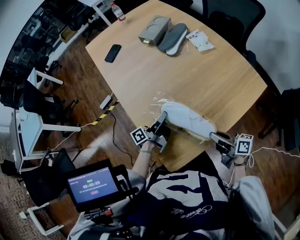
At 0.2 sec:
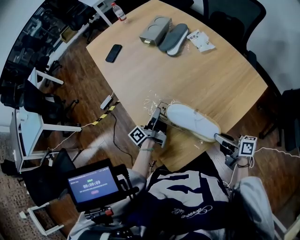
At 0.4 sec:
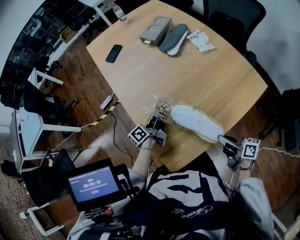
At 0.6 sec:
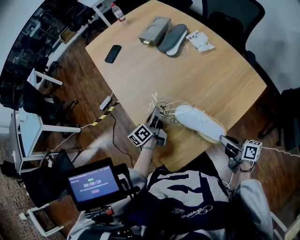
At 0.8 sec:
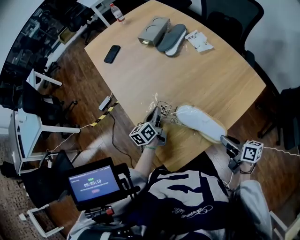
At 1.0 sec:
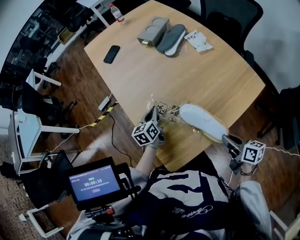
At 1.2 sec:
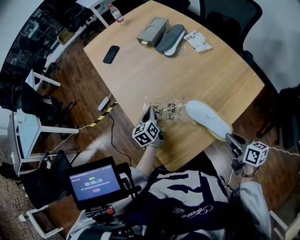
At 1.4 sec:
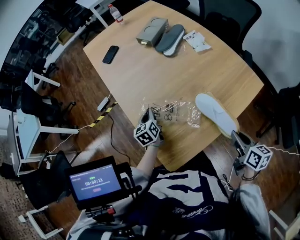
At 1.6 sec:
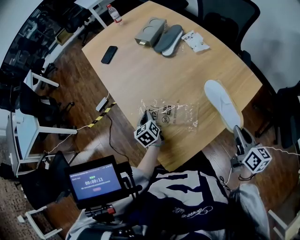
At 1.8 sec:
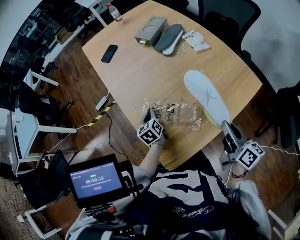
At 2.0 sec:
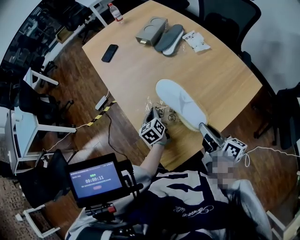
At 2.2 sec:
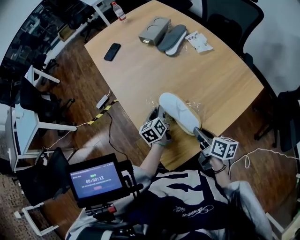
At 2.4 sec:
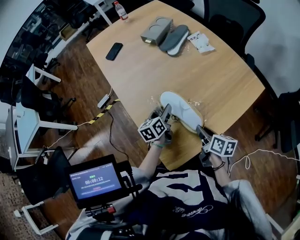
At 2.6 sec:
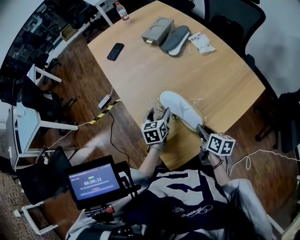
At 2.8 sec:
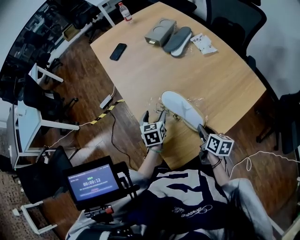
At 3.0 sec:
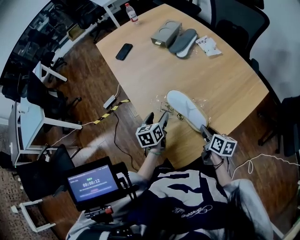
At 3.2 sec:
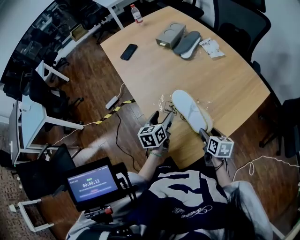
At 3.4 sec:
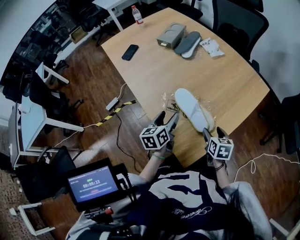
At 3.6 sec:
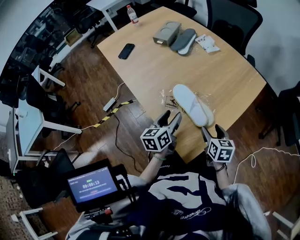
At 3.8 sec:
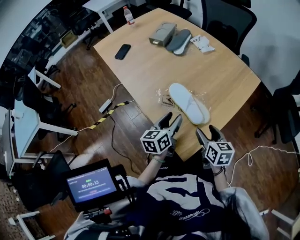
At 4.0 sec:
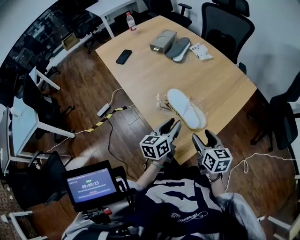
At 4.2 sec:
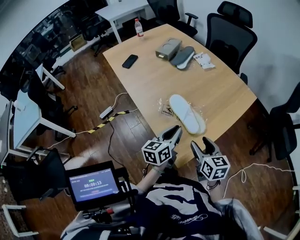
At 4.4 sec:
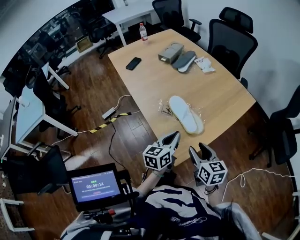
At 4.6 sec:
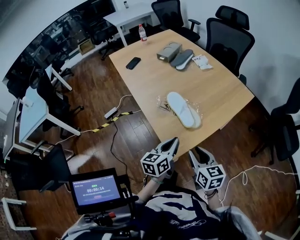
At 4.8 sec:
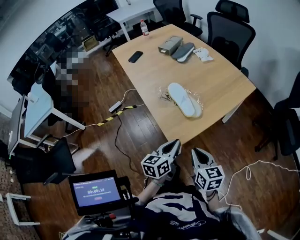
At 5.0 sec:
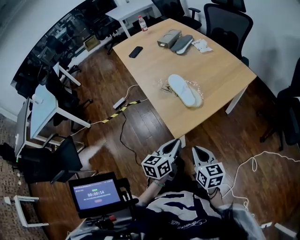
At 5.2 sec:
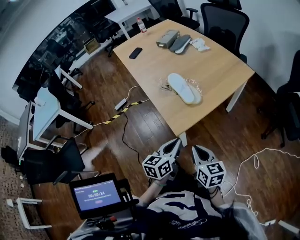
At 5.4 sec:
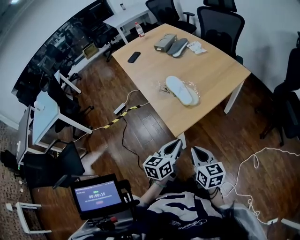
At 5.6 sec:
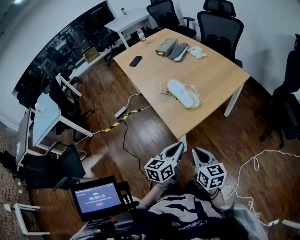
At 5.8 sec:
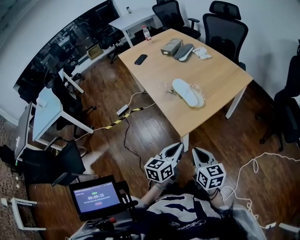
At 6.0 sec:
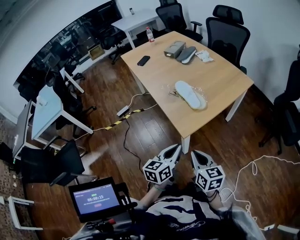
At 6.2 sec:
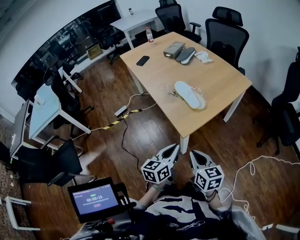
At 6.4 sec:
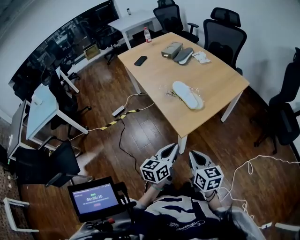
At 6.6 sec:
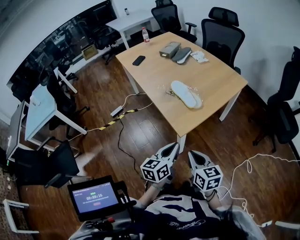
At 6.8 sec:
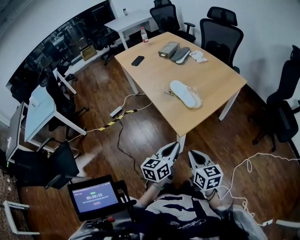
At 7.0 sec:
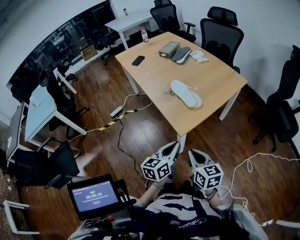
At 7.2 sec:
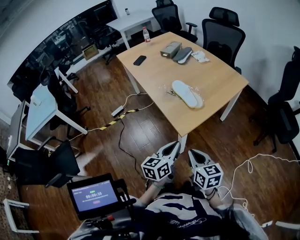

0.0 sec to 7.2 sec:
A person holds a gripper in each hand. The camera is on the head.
0.0 sec to 1.4 sec: The left gripper goes approximately 5 cm to the left, and tilts its fingers some 40 degrees downward. The right gripper heads to the right and upward, covering roughly 10 cm, and rotates roughly 40 degrees.
1.4 sec to 2.8 sec: The right gripper goes roughly 20 cm to the left, downward and forward, while the left gripper reaches about 5 cm to the right, then returns, and opens its fingers.
2.8 sec to 4.4 sec: The left gripper shifts roughly 25 cm backward, upward and to the right, turns by approximately 40 degrees, and closes up. Meanwhile the right gripper travels backward and upward by some 20 cm, turns by some 30 degrees, and opens.
4.4 sec to 5.8 sec: The grippers both shift backward by some 20 cm. The right gripper closes.
5.8 sec to 7.2 sec: The right gripper changes place by approximately 5 cm. Meanwhile the left gripper moves some 5 cm.

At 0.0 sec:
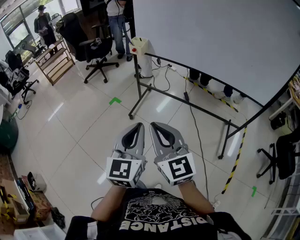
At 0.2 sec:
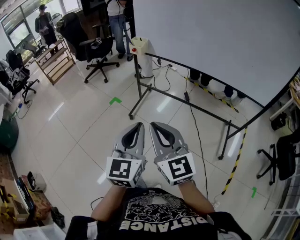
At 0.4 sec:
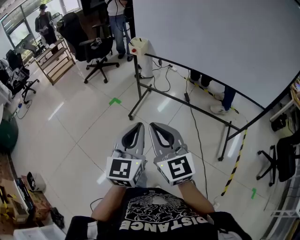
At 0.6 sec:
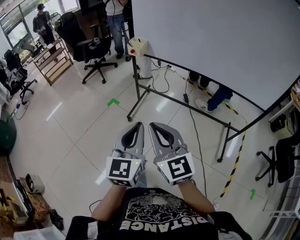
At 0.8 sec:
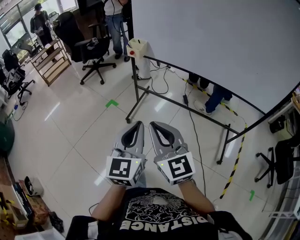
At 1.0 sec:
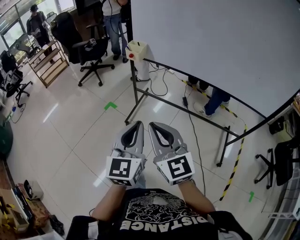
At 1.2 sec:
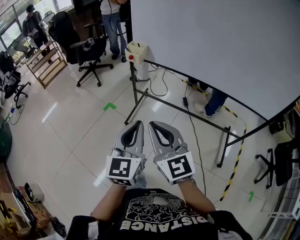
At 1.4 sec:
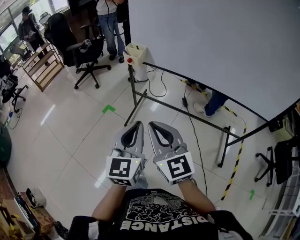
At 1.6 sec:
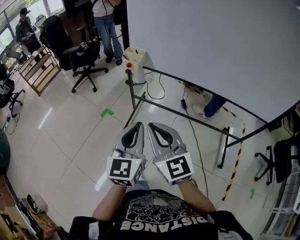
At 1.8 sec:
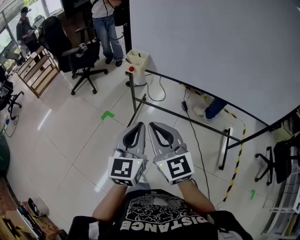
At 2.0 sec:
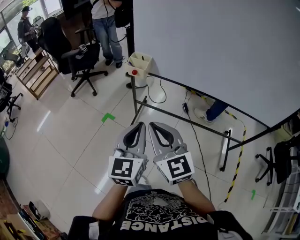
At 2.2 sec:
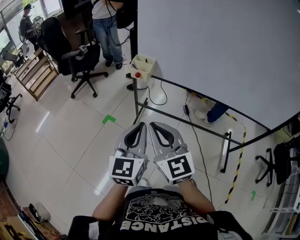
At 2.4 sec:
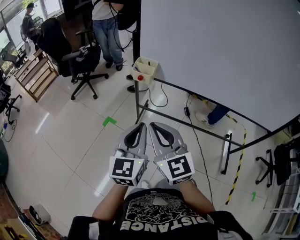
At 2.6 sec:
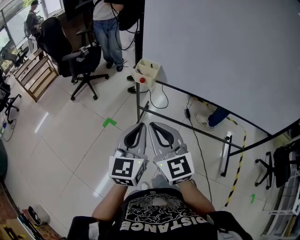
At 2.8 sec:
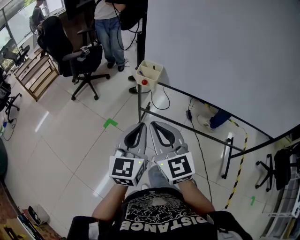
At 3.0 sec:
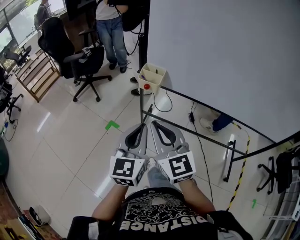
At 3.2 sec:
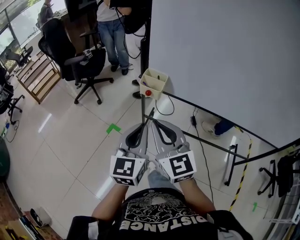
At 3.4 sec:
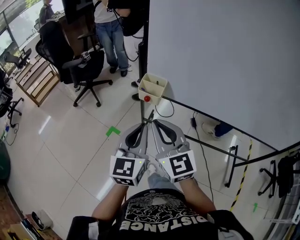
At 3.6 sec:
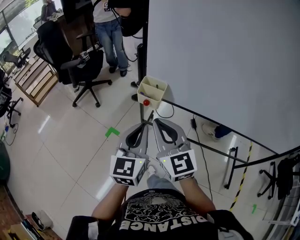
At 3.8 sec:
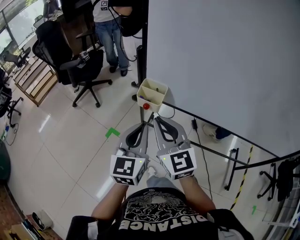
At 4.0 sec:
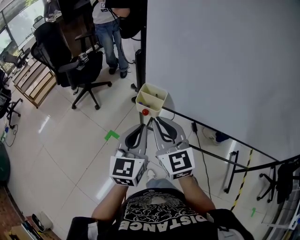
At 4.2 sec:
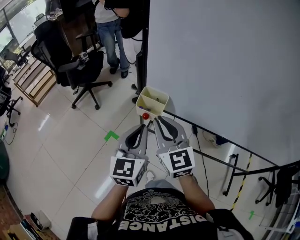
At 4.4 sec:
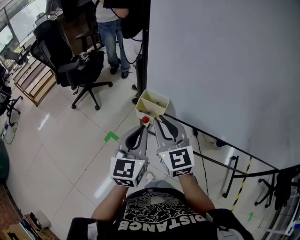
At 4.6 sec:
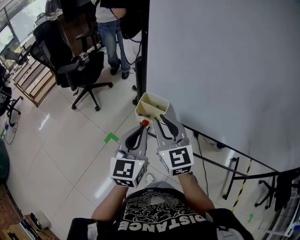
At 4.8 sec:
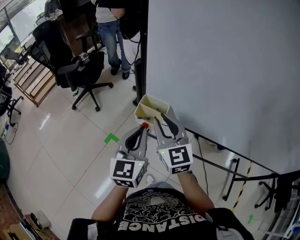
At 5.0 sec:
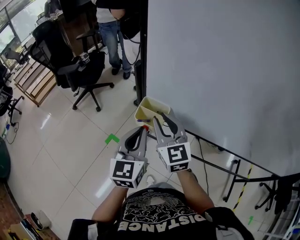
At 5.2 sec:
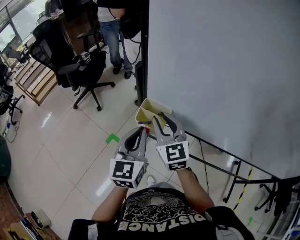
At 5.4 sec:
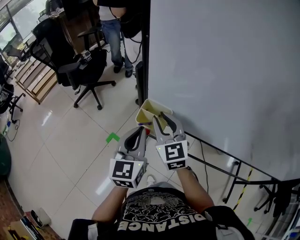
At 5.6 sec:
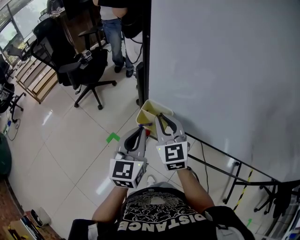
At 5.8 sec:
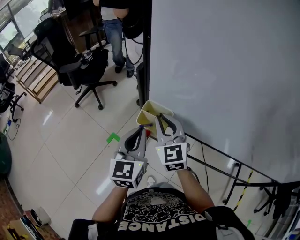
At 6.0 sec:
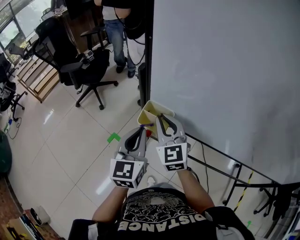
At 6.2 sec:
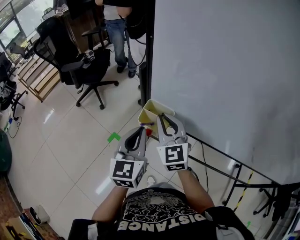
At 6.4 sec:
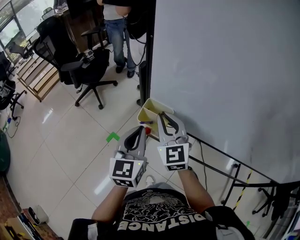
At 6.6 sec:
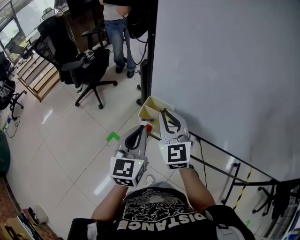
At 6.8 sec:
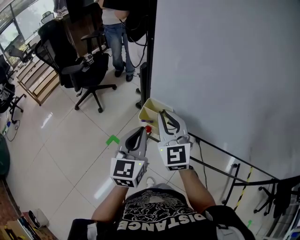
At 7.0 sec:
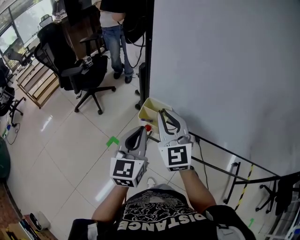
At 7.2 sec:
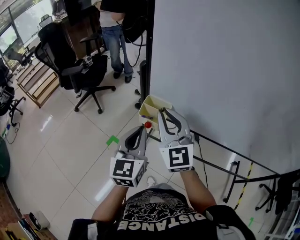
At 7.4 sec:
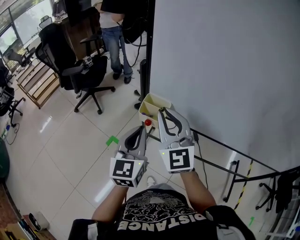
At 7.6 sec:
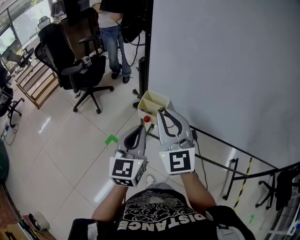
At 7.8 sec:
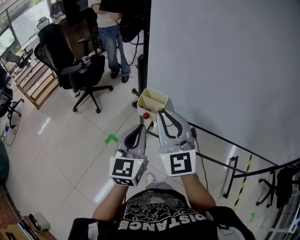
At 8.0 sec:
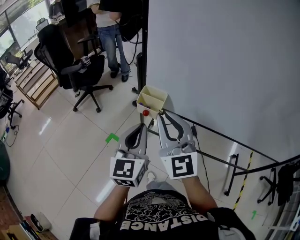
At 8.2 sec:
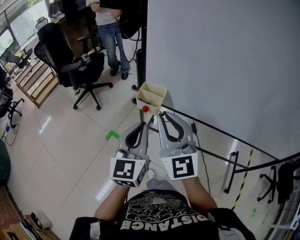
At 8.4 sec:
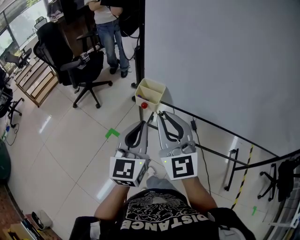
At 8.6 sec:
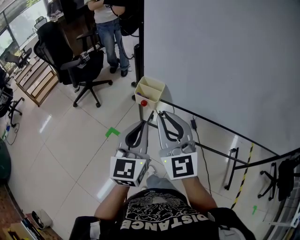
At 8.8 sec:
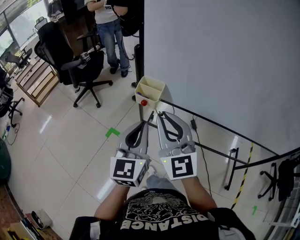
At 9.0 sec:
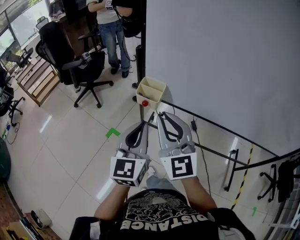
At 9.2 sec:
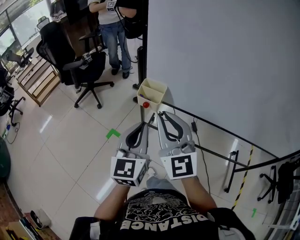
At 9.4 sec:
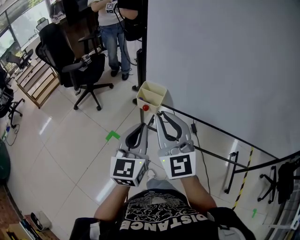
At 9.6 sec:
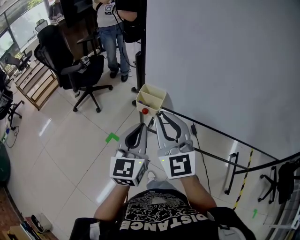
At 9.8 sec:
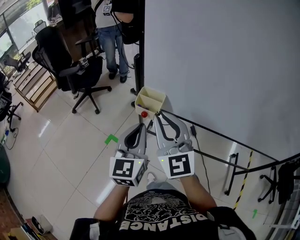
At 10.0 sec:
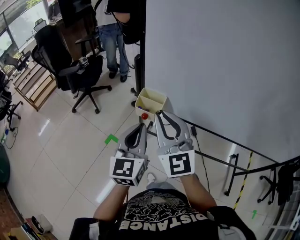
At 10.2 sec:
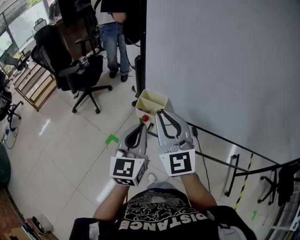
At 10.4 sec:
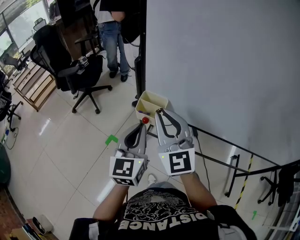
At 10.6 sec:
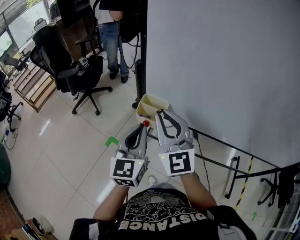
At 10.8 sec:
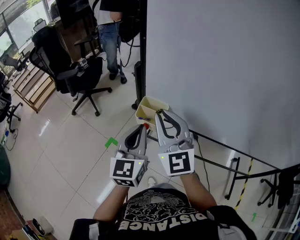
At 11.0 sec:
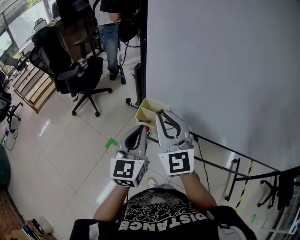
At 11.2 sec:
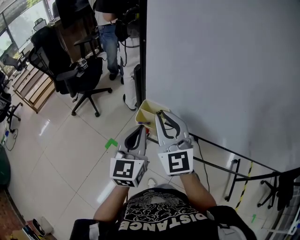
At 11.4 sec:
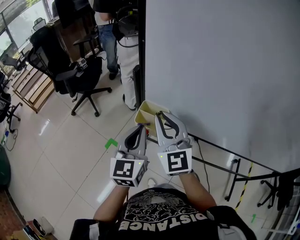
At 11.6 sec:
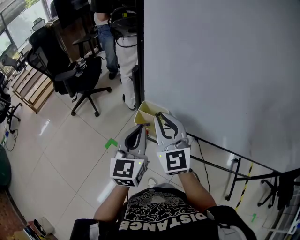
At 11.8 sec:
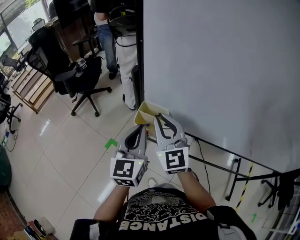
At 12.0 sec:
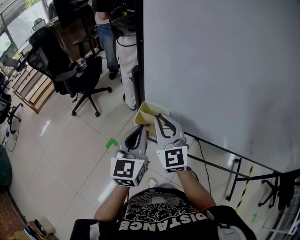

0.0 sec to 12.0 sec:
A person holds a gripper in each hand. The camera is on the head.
0.0 sec to 1.6 sec: The grippers both shift forward by approximately 25 cm.
1.6 sec to 3.0 sec: The grippers both shift forward and to the left by some 20 cm.
3.0 sec to 4.4 sec: Both grippers travel together forward, roughly 20 cm.
4.4 sec to 6.0 sec: The left gripper shifts some 5 cm forward, while the right gripper goes about 10 cm forward.
6.0 sec to 7.6 sec: The right gripper is displaced upward and backward by some 15 cm. Meanwhile the left gripper is displaced backward by approximately 10 cm.
7.6 sec to 9.0 sec: The grippers both shift backward by some 10 cm.
9.0 sec to 10.4 sec: The two grippers go roughly 10 cm forward.
10.4 sec to 12.0 sec: The right gripper travels forward and downward by about 10 cm. Meanwhile the left gripper travels forward by roughly 5 cm.

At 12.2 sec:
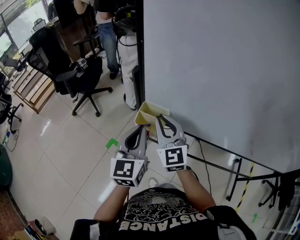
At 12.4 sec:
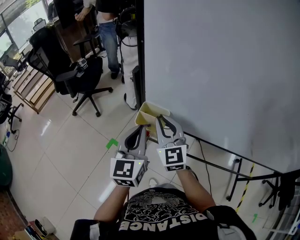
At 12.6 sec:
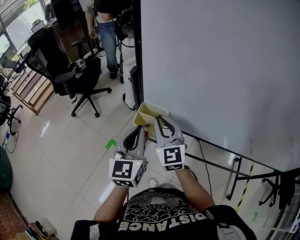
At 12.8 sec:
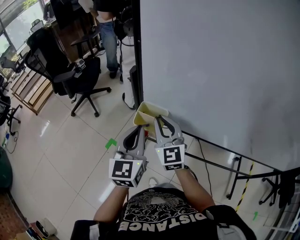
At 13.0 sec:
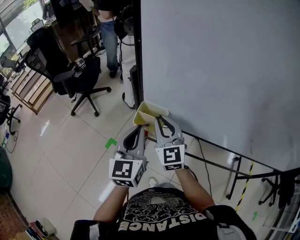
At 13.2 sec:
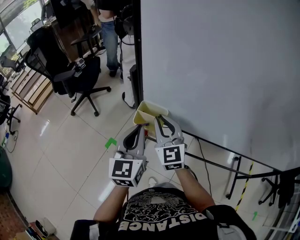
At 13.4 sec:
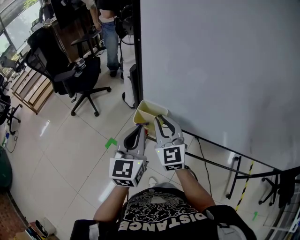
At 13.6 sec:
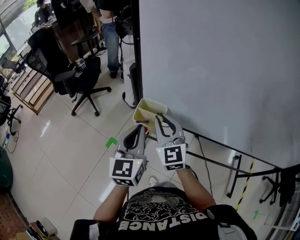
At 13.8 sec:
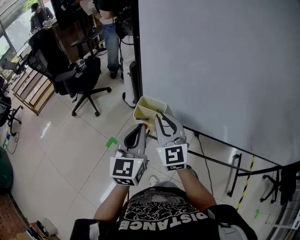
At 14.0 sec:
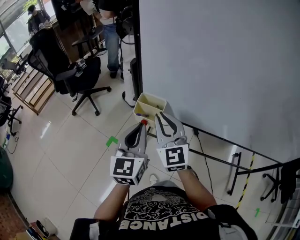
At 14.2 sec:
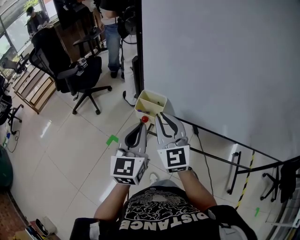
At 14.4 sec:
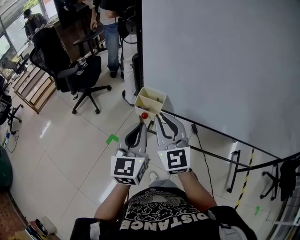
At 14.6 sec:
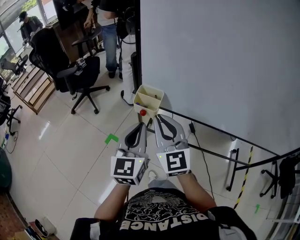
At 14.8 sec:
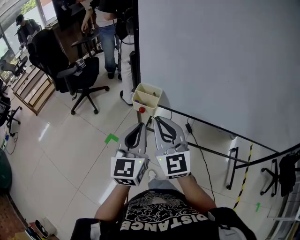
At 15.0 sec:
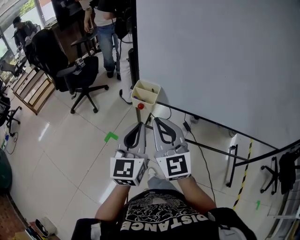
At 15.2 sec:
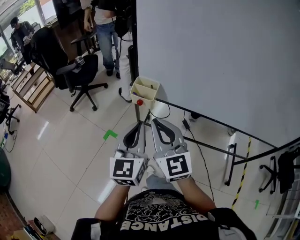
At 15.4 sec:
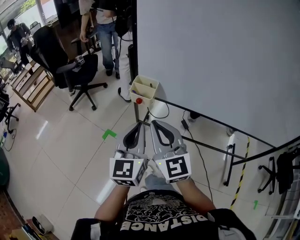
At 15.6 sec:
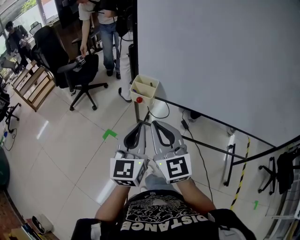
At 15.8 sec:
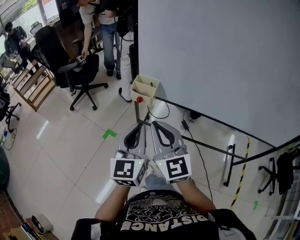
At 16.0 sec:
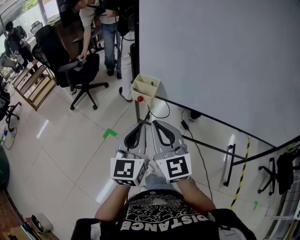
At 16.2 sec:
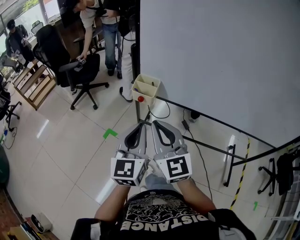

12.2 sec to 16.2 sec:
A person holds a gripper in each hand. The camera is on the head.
12.2 sec to 13.6 sec: There are only small adjustments of the grippers.
13.6 sec to 14.8 sec: The left gripper is displaced backward by approximately 10 cm. Meanwhile the right gripper shifts some 15 cm backward and upward.
14.8 sec to 16.2 sec: Both grippers travel together backward, approximately 5 cm.
